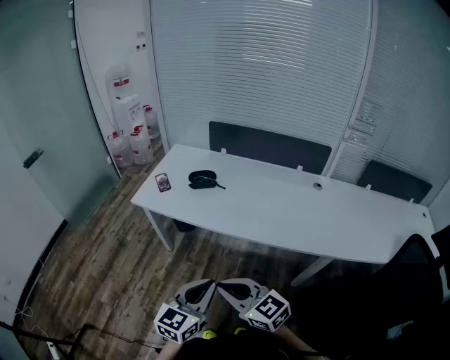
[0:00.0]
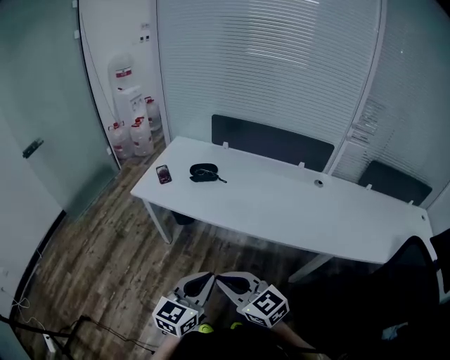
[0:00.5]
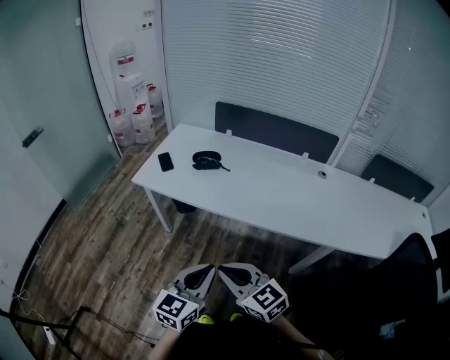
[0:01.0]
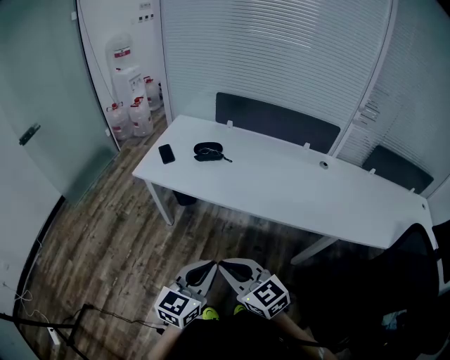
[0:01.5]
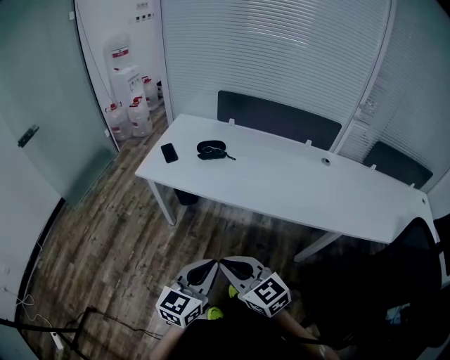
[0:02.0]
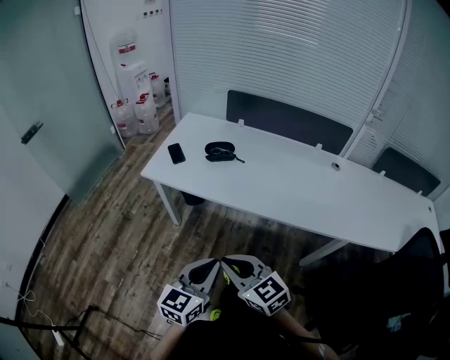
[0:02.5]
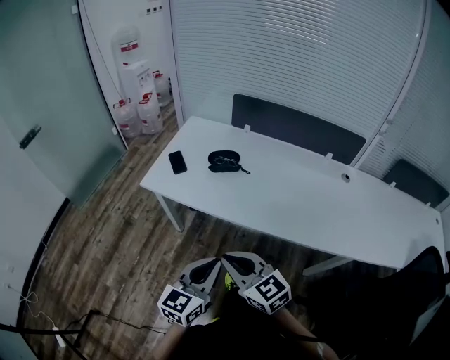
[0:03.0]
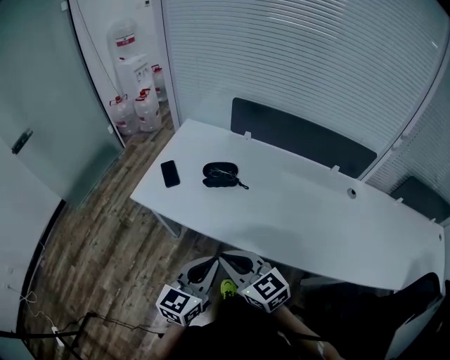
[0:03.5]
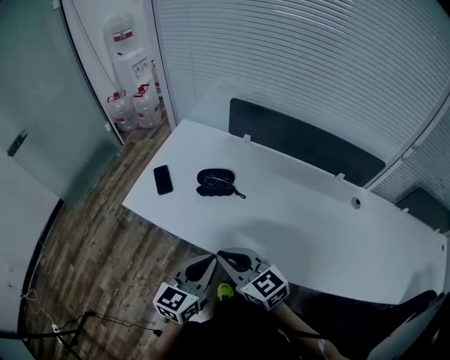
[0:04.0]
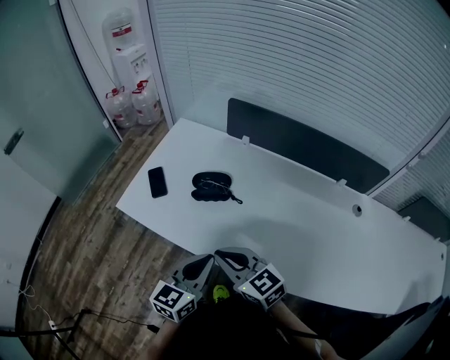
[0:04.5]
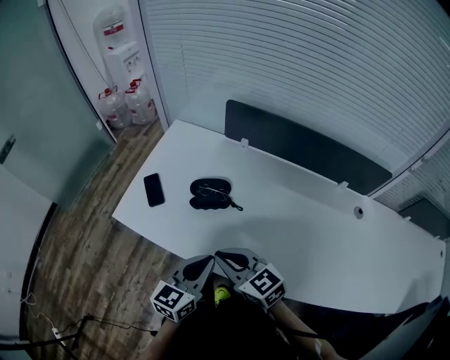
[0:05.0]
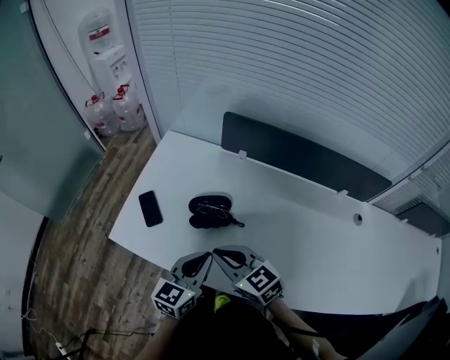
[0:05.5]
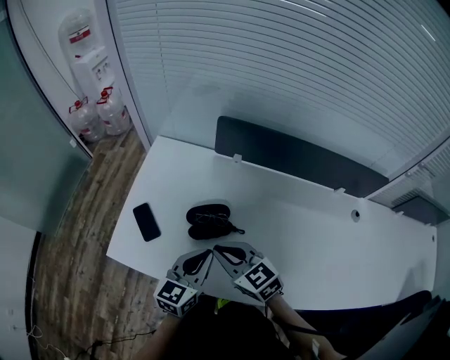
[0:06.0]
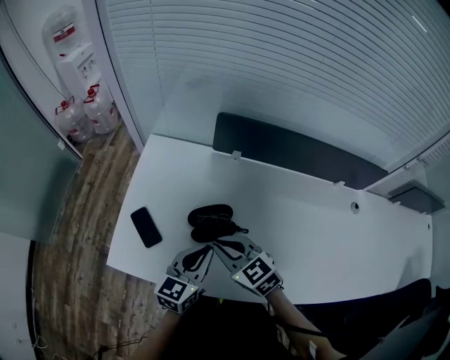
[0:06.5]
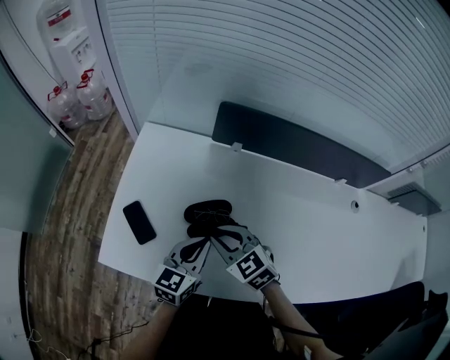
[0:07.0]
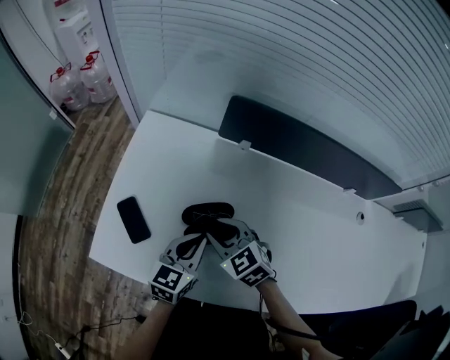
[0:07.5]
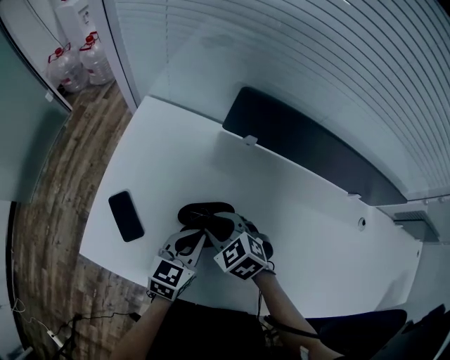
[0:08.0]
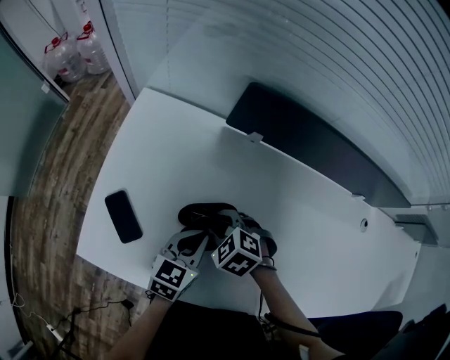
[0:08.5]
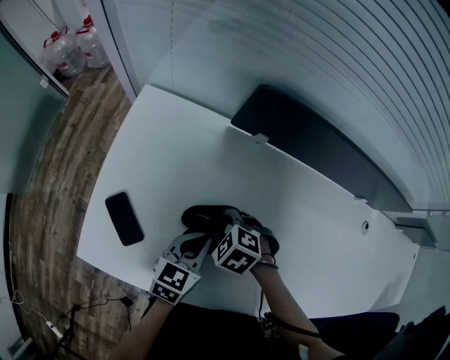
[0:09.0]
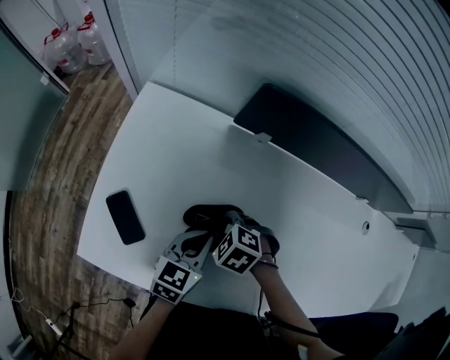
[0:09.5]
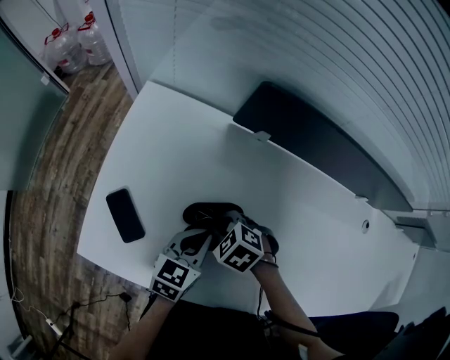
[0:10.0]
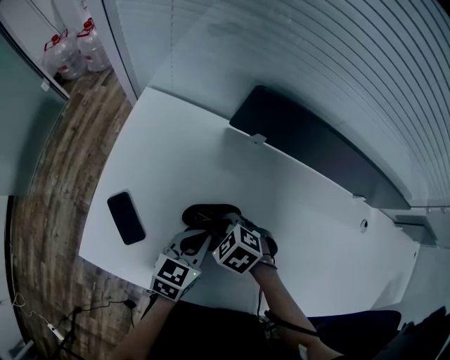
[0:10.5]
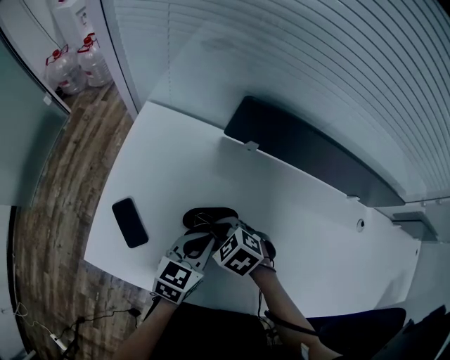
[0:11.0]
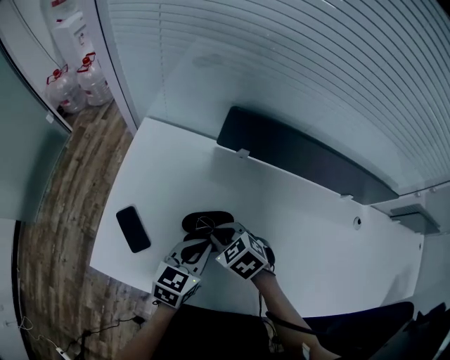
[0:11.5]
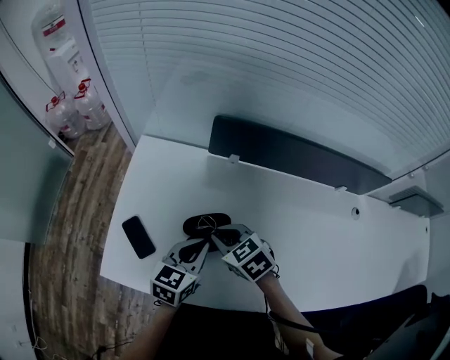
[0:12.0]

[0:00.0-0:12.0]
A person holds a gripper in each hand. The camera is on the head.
0:00.0 to 0:02.0: The right gripper changes place by some 5 cm. The left gripper travels to the left by about 5 cm.
0:02.0 to 0:04.0: Both grippers move forward, roughly 25 cm.
0:04.0 to 0:06.0: The grippers both shift forward by some 20 cm.
0:06.0 to 0:08.0: The grippers both shift downward and forward by roughly 15 cm. The right gripper rotates some 30 degrees, and opens up.
0:08.0 to 0:10.0: The right gripper closes its fingers.
0:10.0 to 0:12.0: Both grippers move upward, roughly 10 cm. The right gripper swivels some 30 degrees.

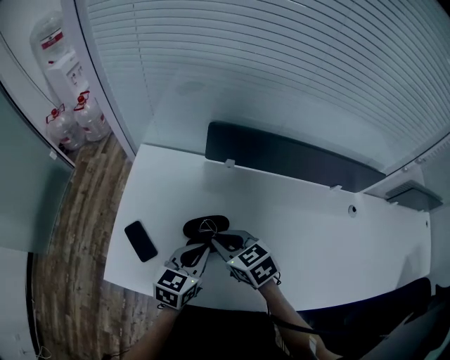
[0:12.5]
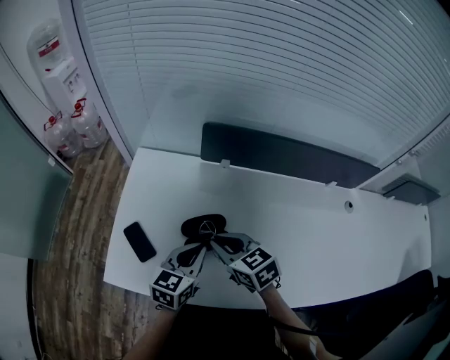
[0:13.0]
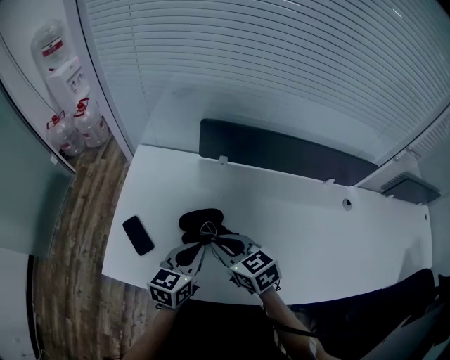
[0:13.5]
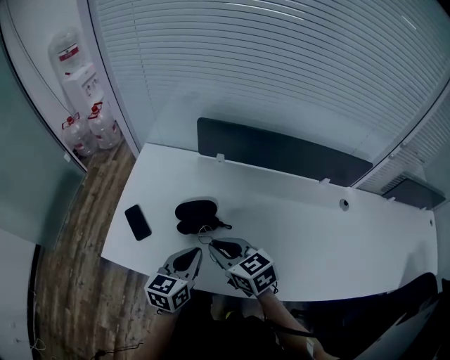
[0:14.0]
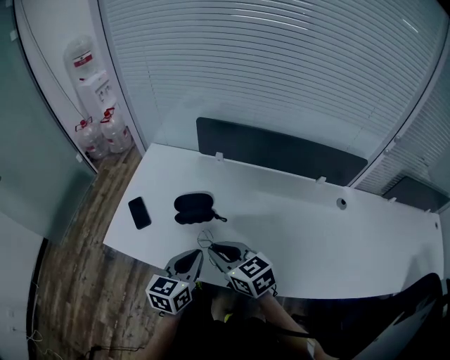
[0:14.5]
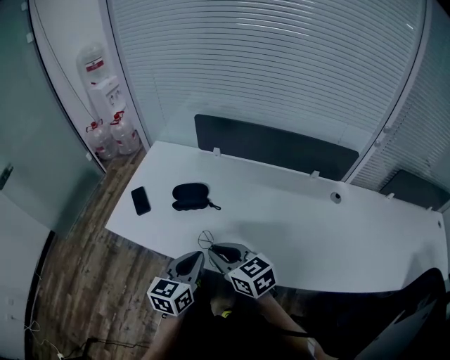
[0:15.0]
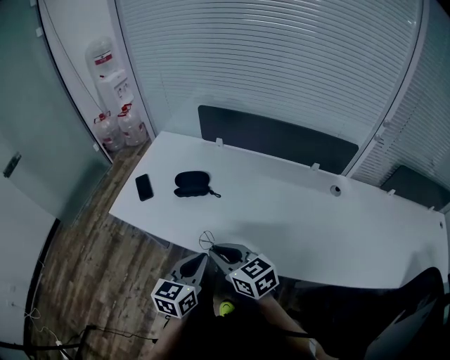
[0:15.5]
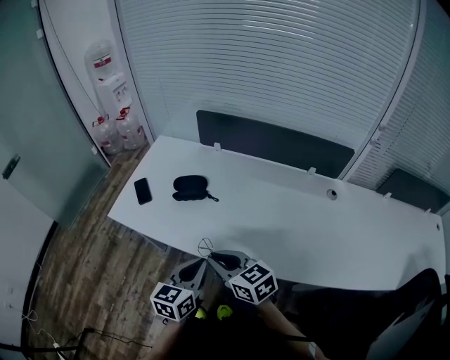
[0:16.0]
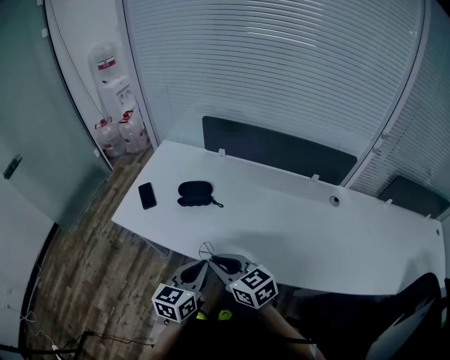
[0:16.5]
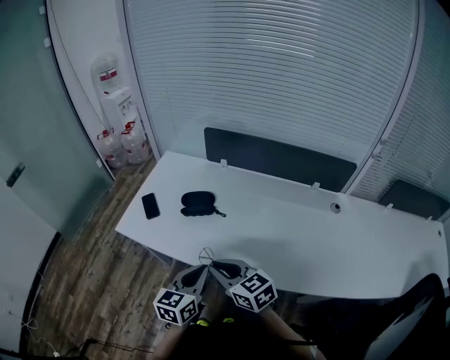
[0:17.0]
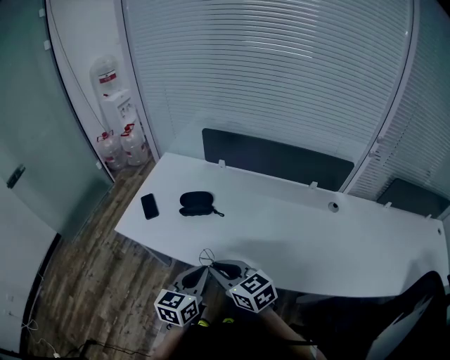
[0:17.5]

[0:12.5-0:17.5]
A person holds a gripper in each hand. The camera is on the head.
0:12.5 to 0:15.0: The grippers both shift backward by roughly 20 cm. The right gripper swivels some 20 degrees.
0:15.0 to 0:17.5: The two grippers go about 5 cm backward.

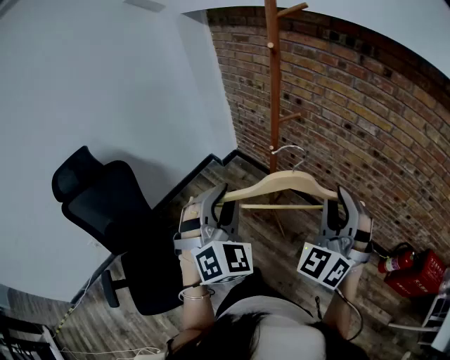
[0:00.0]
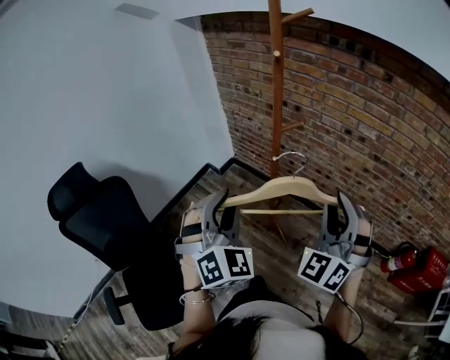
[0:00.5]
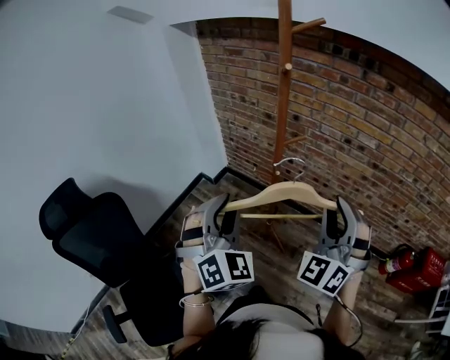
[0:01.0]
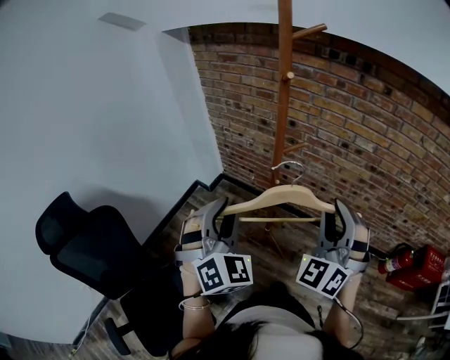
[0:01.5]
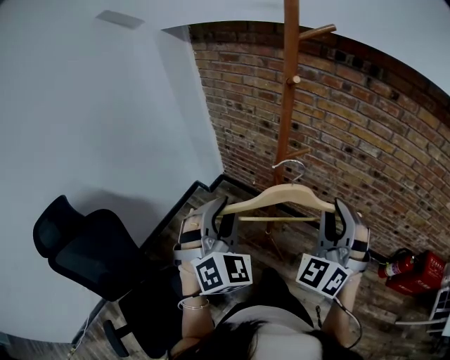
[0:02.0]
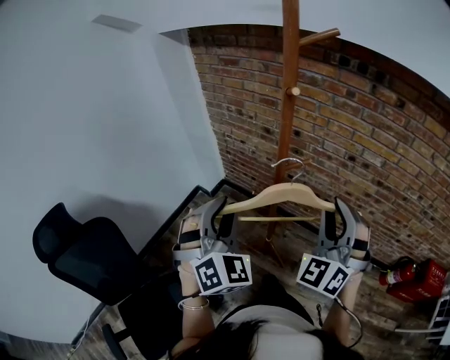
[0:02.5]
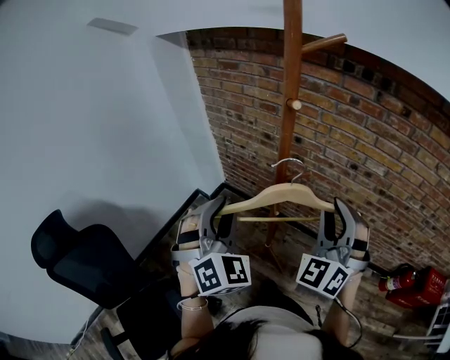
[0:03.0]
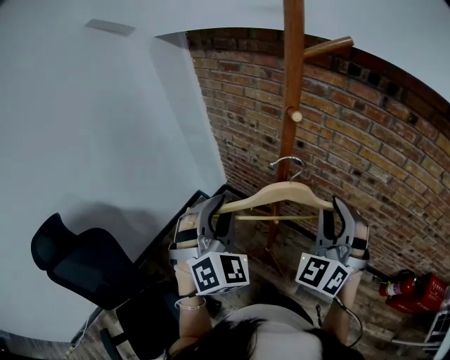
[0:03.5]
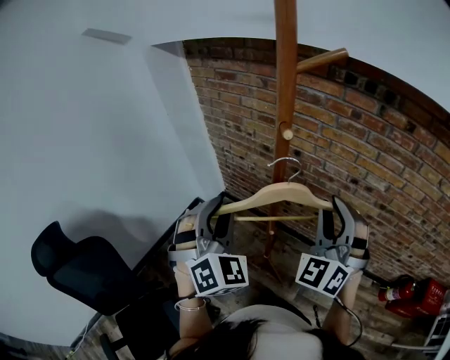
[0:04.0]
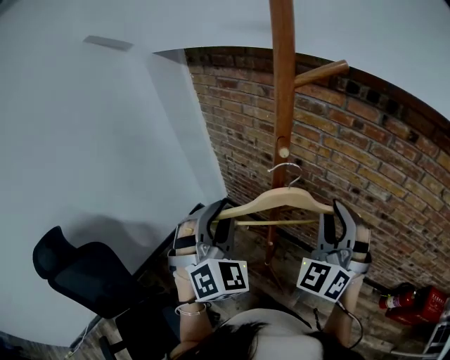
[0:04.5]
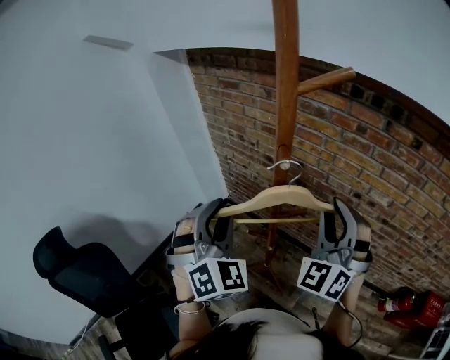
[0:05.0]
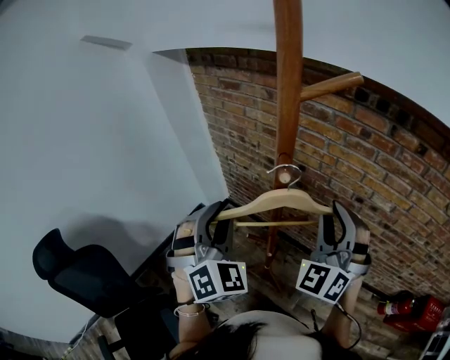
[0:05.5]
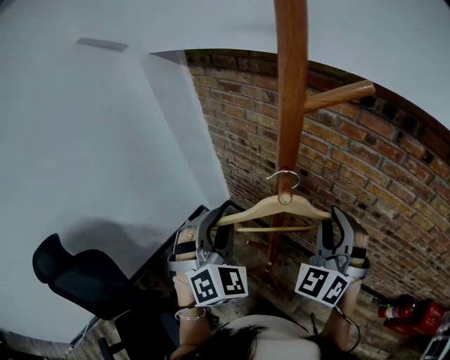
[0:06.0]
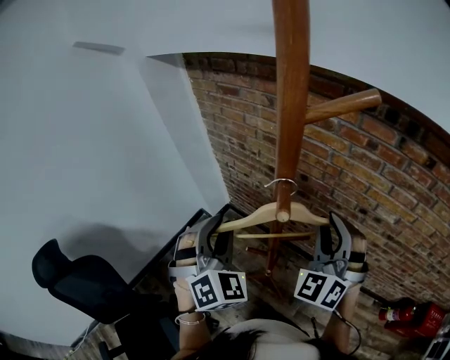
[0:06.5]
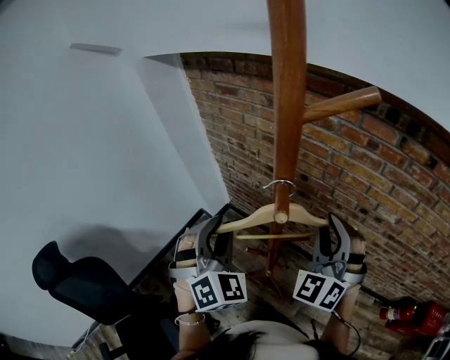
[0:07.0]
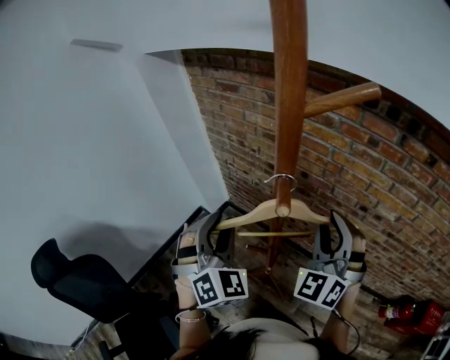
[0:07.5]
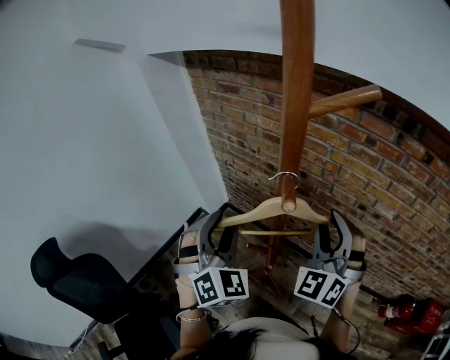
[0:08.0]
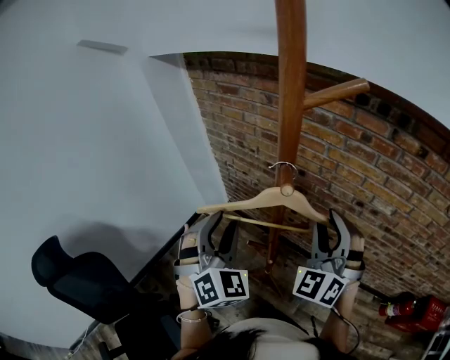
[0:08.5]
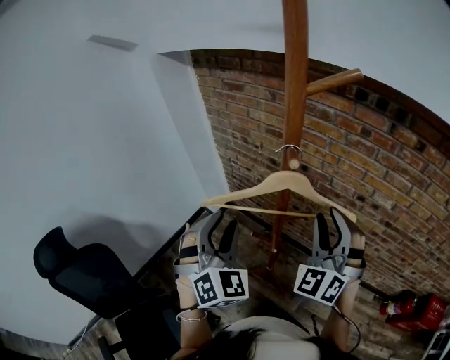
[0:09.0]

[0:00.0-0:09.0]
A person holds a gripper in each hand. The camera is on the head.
0:00.0 to 0:02.0: Both grippers travel together forward and to the left, approximately 15 cm.
0:02.0 to 0:04.5: Both grippers travel together forward, about 15 cm.
0:04.5 to 0:07.0: The two grippers go about 10 cm forward.
0:07.0 to 0:09.0: Both grippers travel together backward, roughly 5 cm.

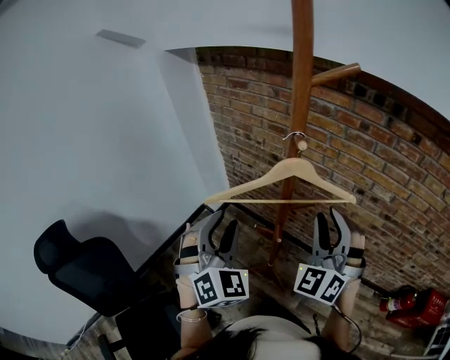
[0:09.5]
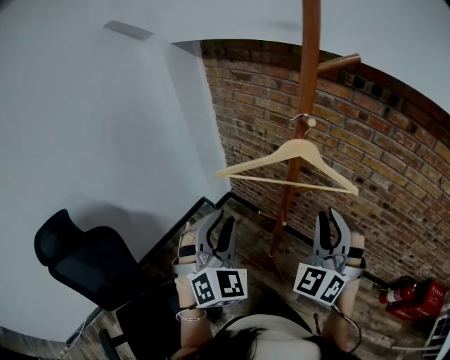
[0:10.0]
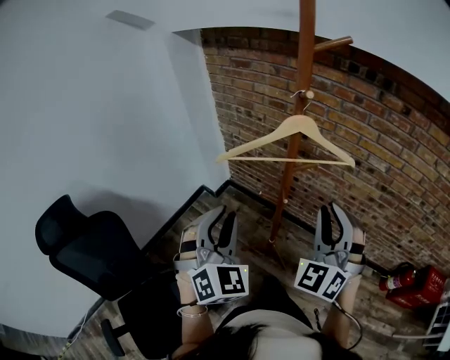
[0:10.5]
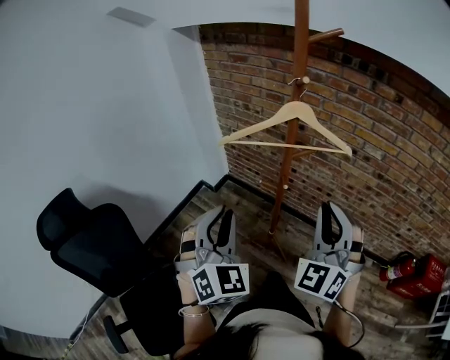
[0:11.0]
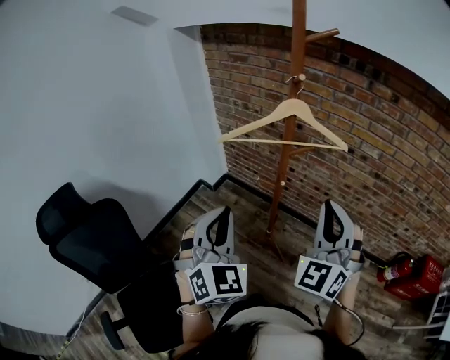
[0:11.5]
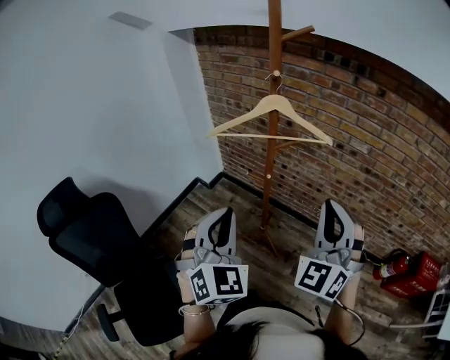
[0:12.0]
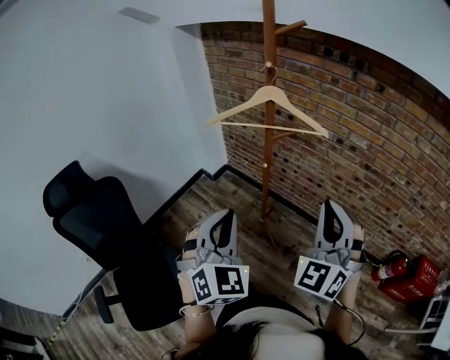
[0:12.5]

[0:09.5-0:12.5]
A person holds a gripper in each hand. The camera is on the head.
0:09.5 to 0:11.0: The grippers both shift backward by about 15 cm.
0:11.0 to 0:12.5: The two grippers go roughly 15 cm to the right and backward.
